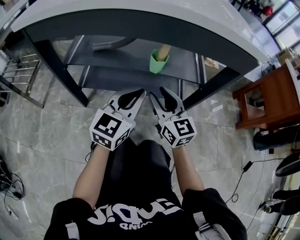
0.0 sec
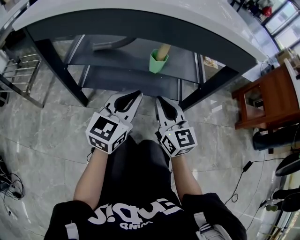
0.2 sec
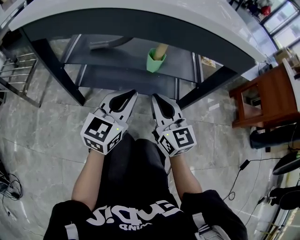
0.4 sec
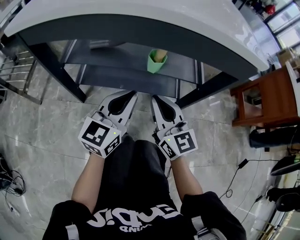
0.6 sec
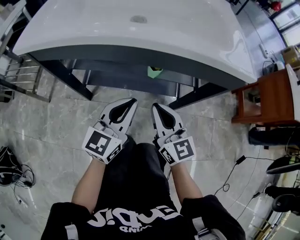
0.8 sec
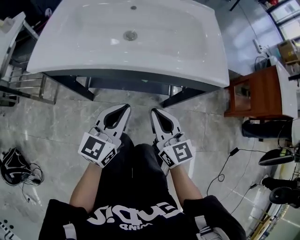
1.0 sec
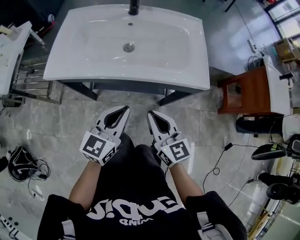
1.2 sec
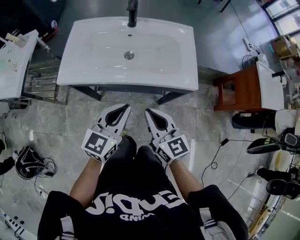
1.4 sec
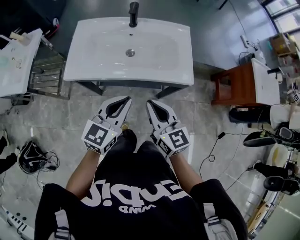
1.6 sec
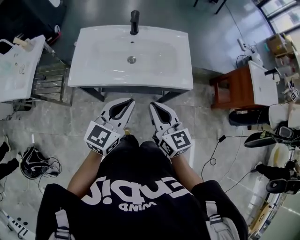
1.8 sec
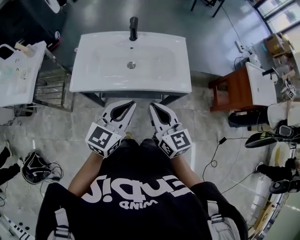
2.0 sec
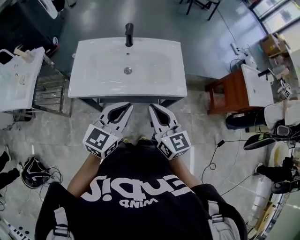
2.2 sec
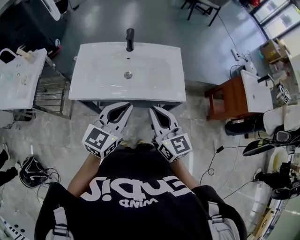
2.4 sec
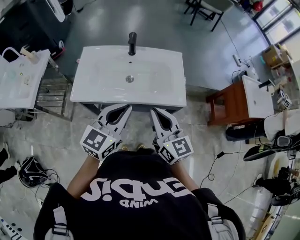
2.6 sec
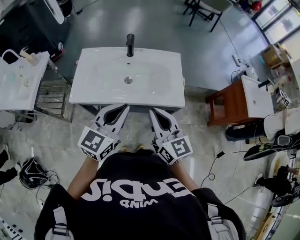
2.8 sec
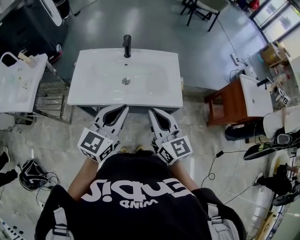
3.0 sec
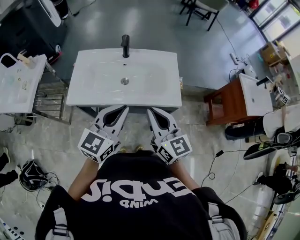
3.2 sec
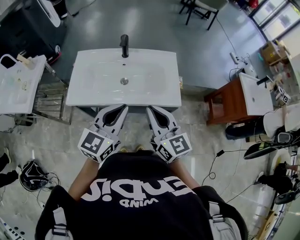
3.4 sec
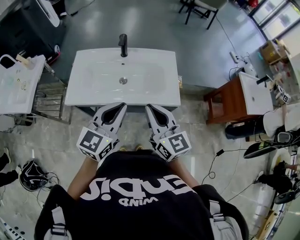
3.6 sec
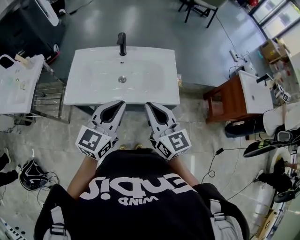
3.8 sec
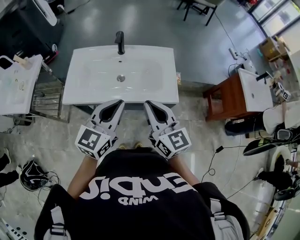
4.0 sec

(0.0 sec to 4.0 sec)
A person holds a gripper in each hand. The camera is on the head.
0.0 sec - 1.4 sec: The two grippers go approximately 40 cm upward. The right gripper closes up.
1.4 sec - 2.6 sec: The two grippers go roughly 15 cm upward.
2.6 sec - 4.0 sec: There are only small adjustments of the grippers.

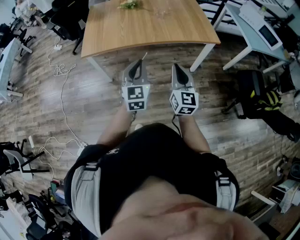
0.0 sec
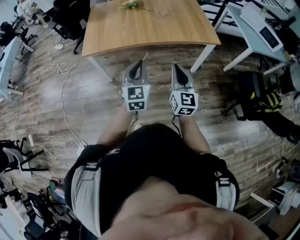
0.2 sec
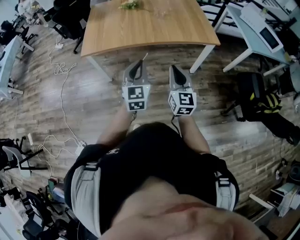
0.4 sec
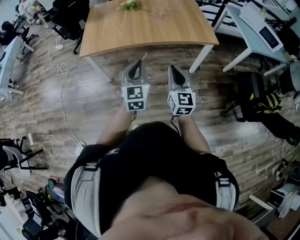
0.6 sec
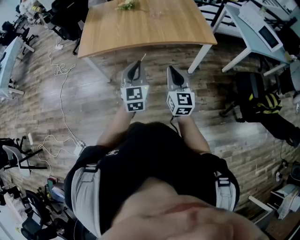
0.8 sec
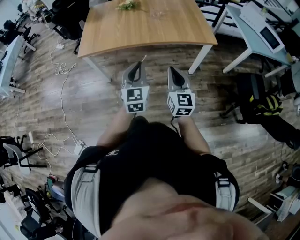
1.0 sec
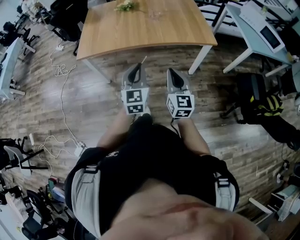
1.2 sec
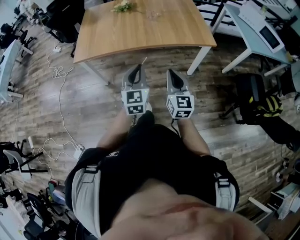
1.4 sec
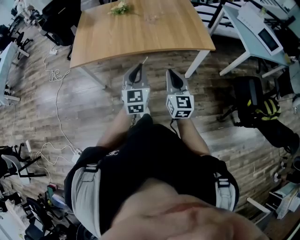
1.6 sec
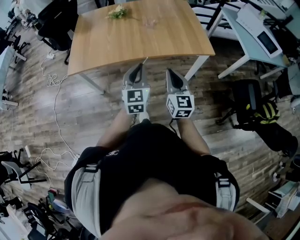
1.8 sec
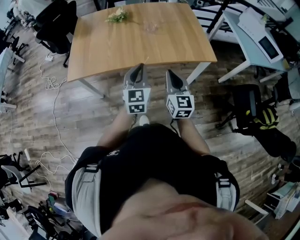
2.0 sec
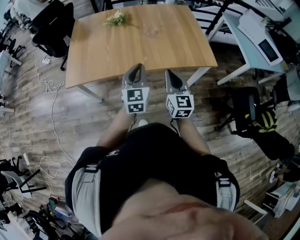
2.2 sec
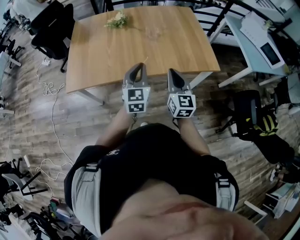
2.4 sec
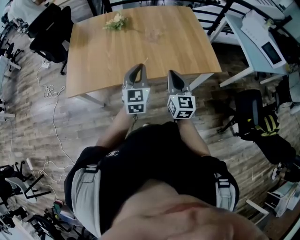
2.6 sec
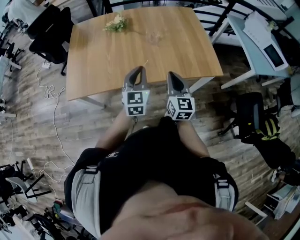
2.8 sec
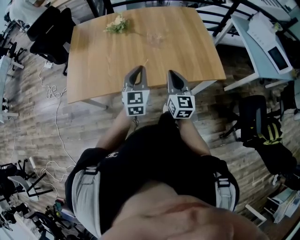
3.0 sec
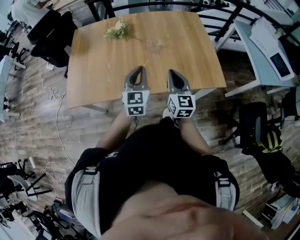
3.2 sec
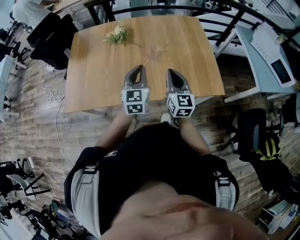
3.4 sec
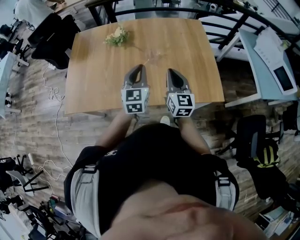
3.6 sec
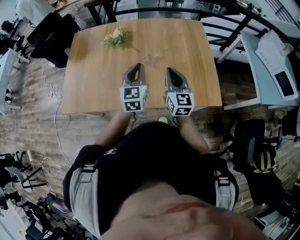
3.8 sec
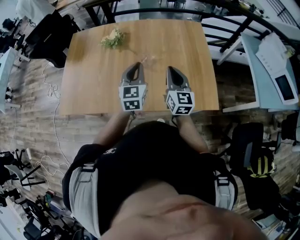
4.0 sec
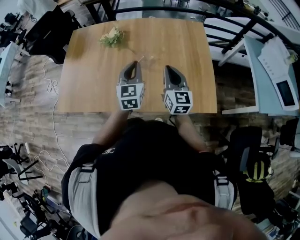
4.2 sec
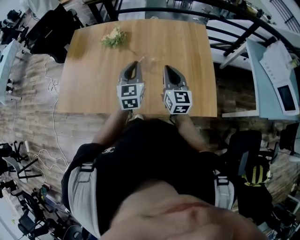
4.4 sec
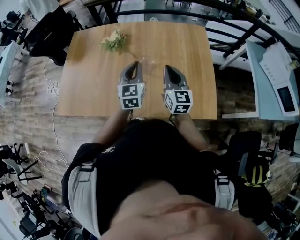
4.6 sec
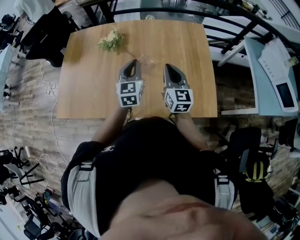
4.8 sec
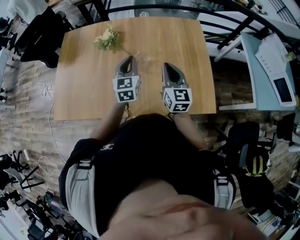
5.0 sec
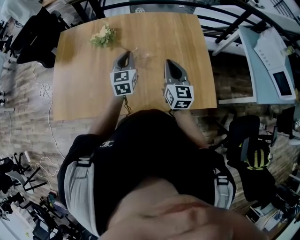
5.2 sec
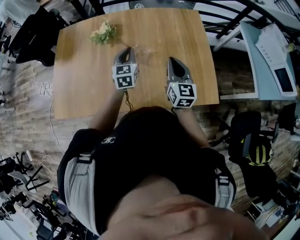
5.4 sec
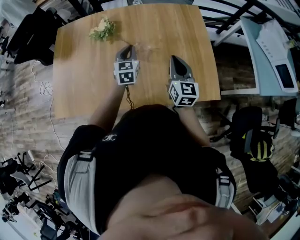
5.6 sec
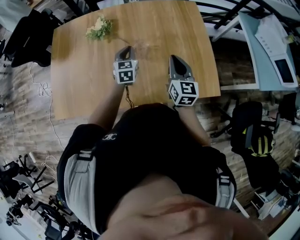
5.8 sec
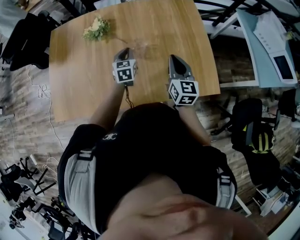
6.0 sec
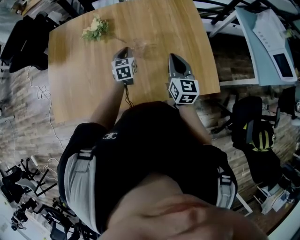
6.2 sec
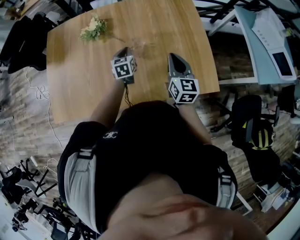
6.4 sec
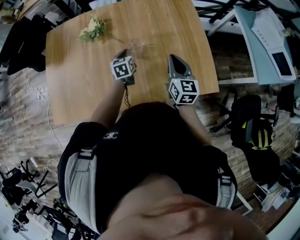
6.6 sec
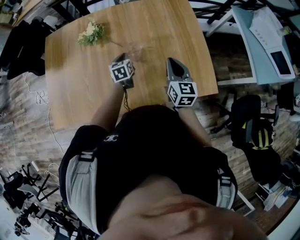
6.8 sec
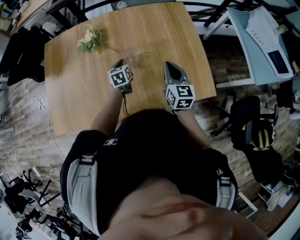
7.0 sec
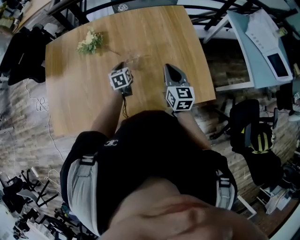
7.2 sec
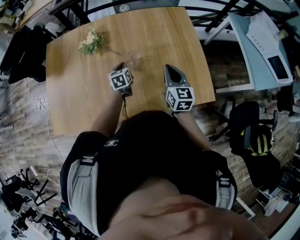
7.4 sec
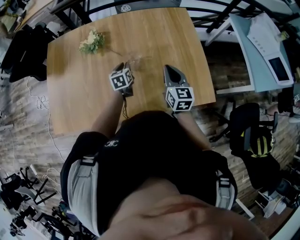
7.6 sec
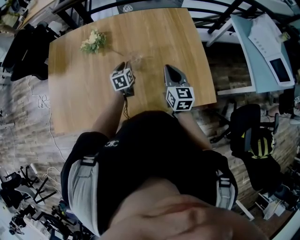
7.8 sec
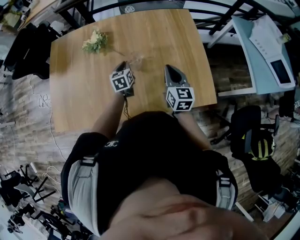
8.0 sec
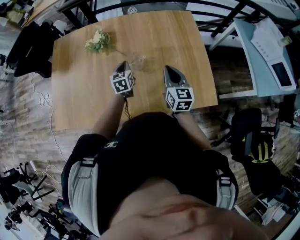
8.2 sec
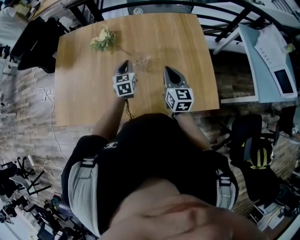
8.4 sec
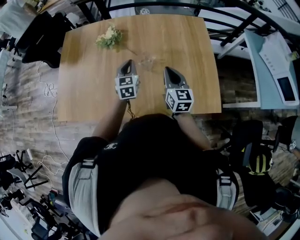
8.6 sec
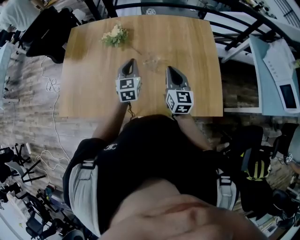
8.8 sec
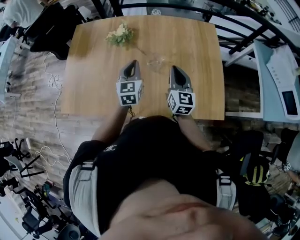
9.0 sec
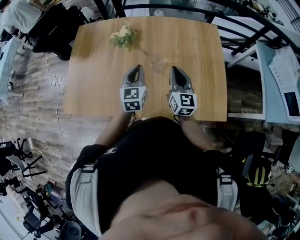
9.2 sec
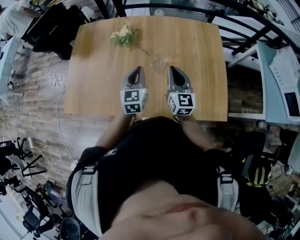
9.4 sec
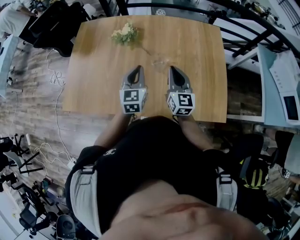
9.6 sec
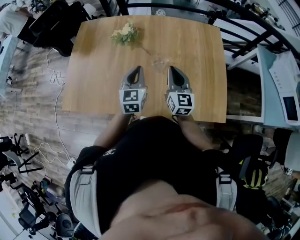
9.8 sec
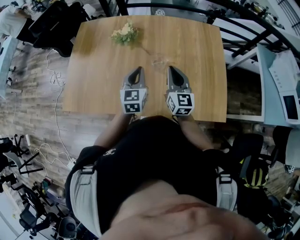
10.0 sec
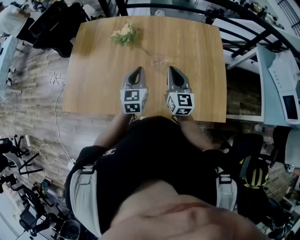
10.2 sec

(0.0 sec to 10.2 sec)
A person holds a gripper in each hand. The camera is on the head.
0.0 sec - 1.4 sec: Both grippers travel together to the right, approximately 5 cm.
1.4 sec - 3.0 sec: Both grippers travel together forward, about 35 cm.
3.0 sec - 4.4 sec: The two grippers go some 25 cm forward and to the right.
4.4 sec - 5.8 sec: The left gripper moves downward and forward, some 15 cm.
5.8 sec - 7.2 sec: The left gripper goes about 10 cm downward, and swivels roughly 20 degrees.
7.2 sec - 8.8 sec: The left gripper goes some 15 cm upward, and turns by about 30 degrees. The right gripper moves to the left, some 5 cm.
8.8 sec - 10.2 sec: The left gripper changes place by roughly 5 cm.

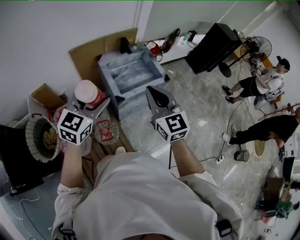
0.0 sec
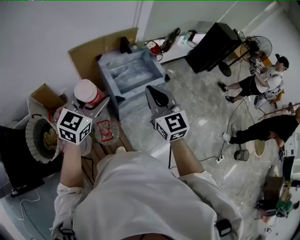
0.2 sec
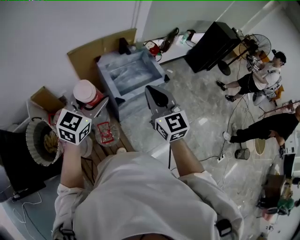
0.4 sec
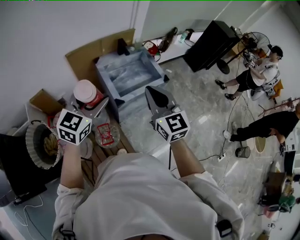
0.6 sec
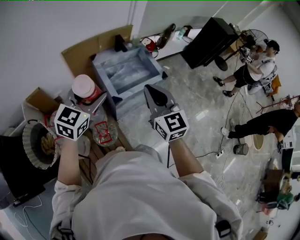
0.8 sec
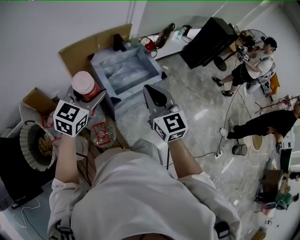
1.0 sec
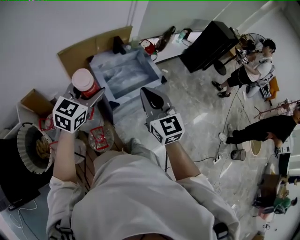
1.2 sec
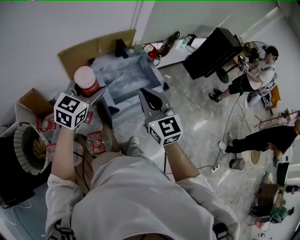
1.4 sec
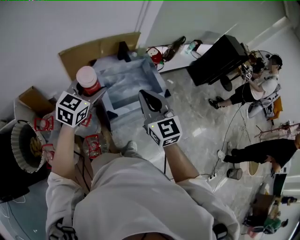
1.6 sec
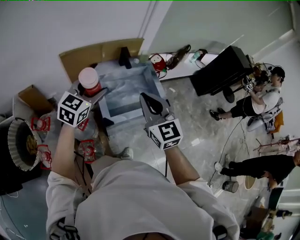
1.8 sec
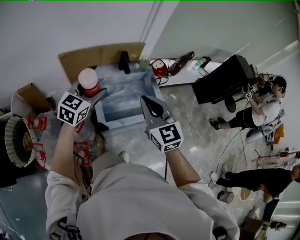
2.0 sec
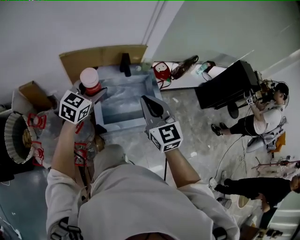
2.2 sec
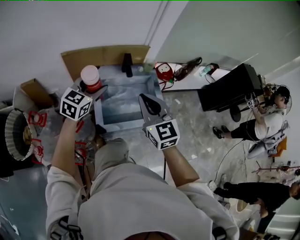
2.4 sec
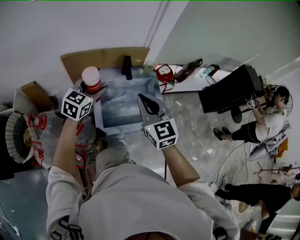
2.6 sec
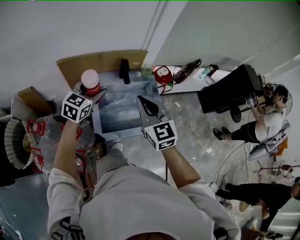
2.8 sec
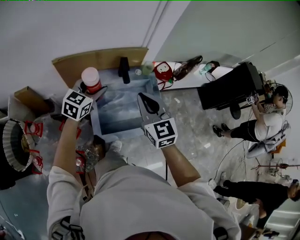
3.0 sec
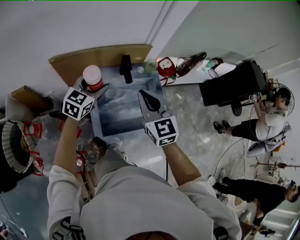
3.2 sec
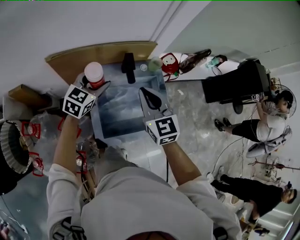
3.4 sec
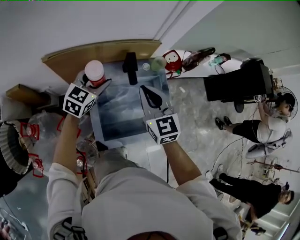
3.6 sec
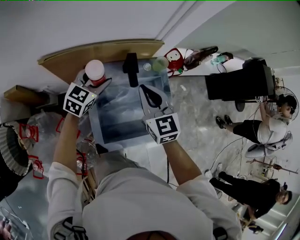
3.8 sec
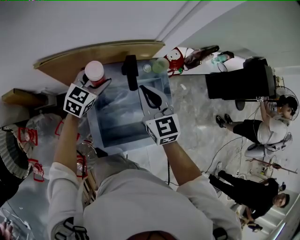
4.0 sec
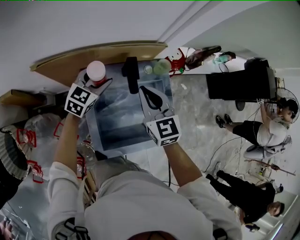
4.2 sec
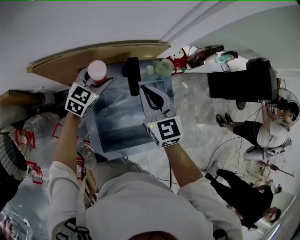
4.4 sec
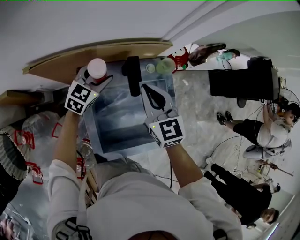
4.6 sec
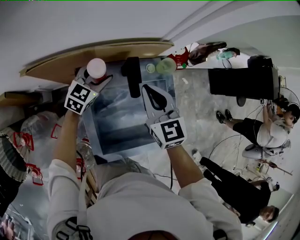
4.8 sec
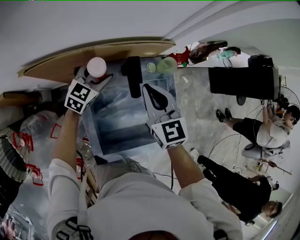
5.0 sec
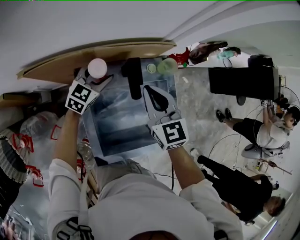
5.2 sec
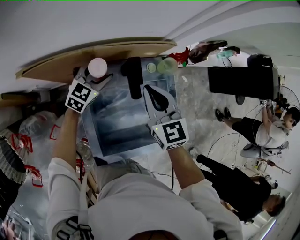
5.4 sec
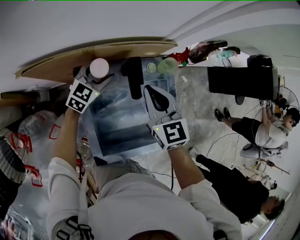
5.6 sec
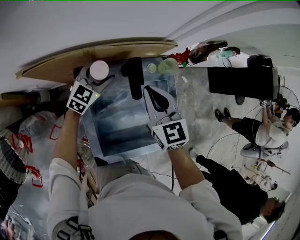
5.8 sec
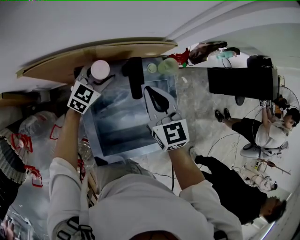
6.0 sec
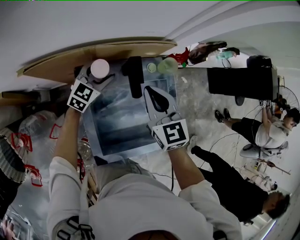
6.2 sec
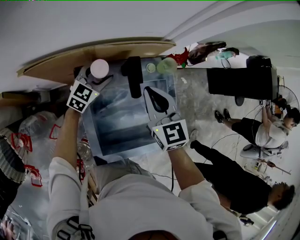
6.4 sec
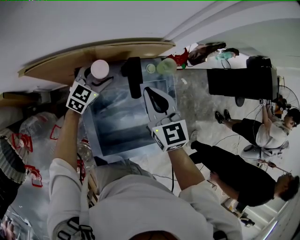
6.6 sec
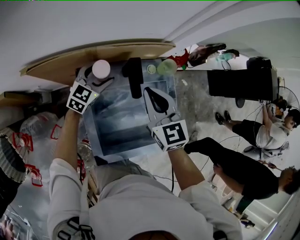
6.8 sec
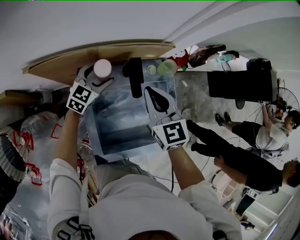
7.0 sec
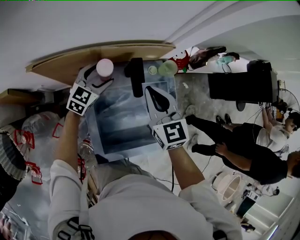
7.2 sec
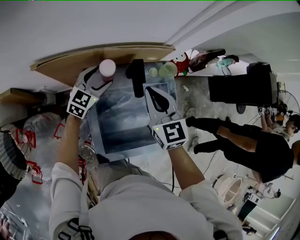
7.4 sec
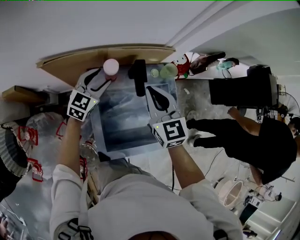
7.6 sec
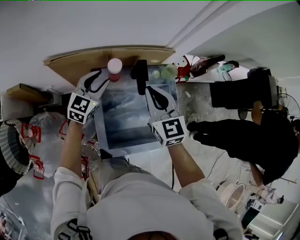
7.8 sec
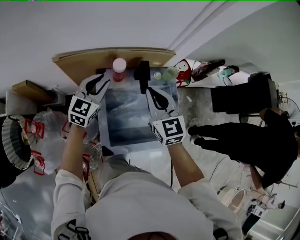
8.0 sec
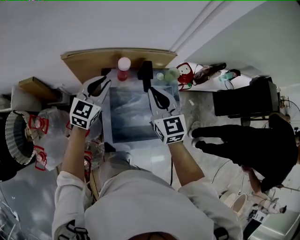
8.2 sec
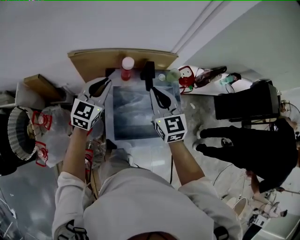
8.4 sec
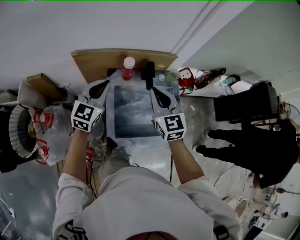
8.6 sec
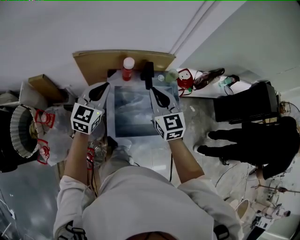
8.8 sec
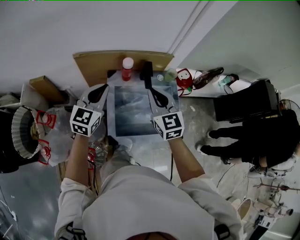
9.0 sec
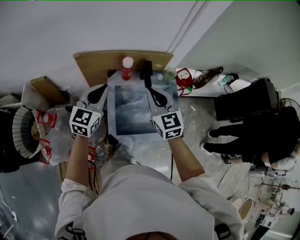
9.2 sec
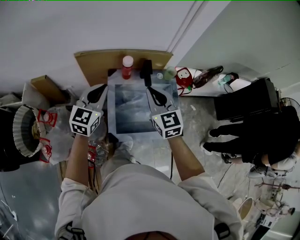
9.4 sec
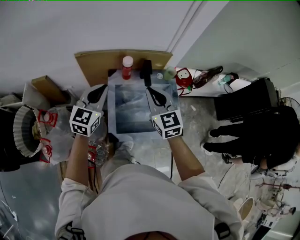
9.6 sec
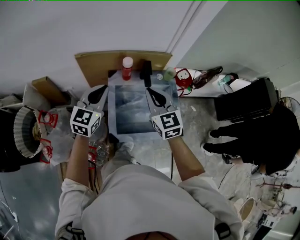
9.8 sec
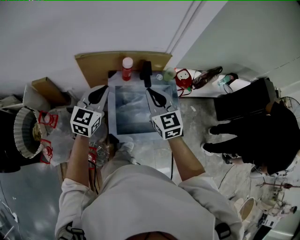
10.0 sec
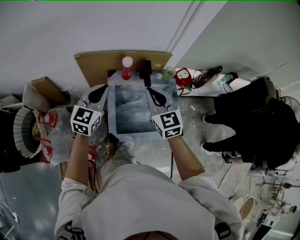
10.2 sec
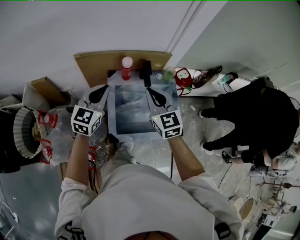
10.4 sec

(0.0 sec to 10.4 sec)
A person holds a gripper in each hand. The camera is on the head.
0.0 sec - 1.4 sec: The two grippers go about 15 cm forward and downward.
1.4 sec - 3.0 sec: The left gripper moves forward and downward, roughly 25 cm. The right gripper goes about 25 cm forward.
3.0 sec - 4.4 sec: The grippers both shift forward and downward by approximately 25 cm.
4.4 sec - 6.0 sec: The left gripper shifts some 5 cm downward.
6.0 sec - 7.4 sec: The left gripper shifts by about 5 cm.
7.4 sec - 9.0 sec: The left gripper travels upward and backward by about 30 cm, and closes up; the right gripper shifts approximately 15 cm backward and upward.
9.0 sec - 10.4 sec: There are only small adjustments of the grippers.
